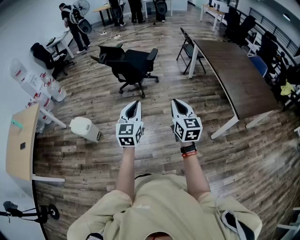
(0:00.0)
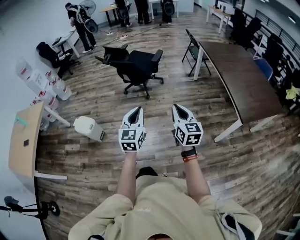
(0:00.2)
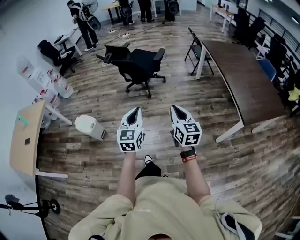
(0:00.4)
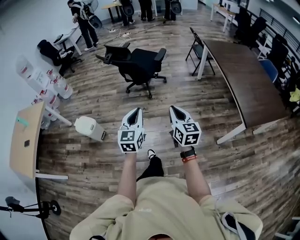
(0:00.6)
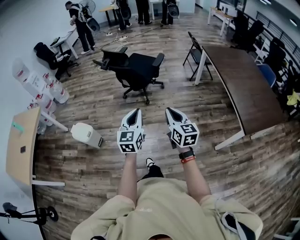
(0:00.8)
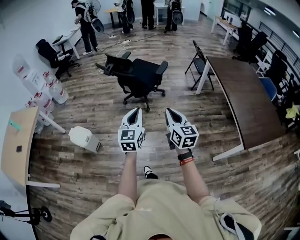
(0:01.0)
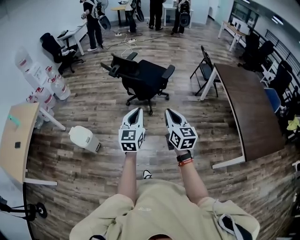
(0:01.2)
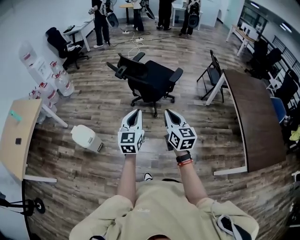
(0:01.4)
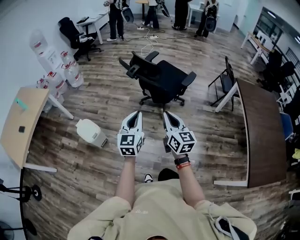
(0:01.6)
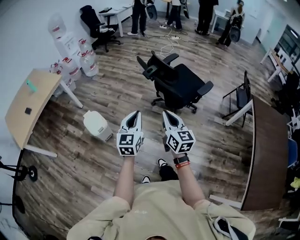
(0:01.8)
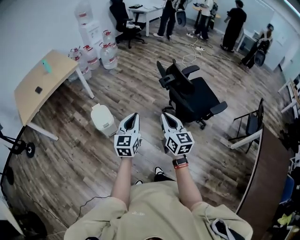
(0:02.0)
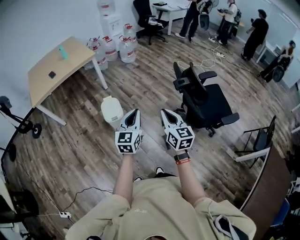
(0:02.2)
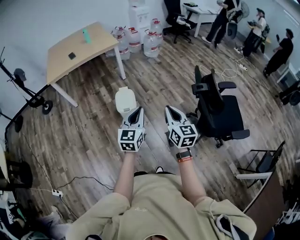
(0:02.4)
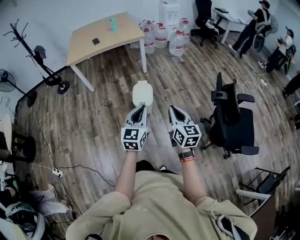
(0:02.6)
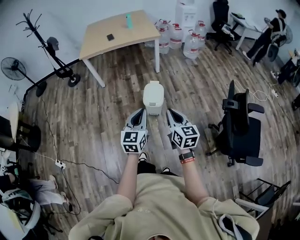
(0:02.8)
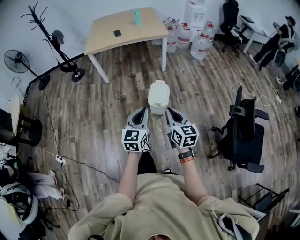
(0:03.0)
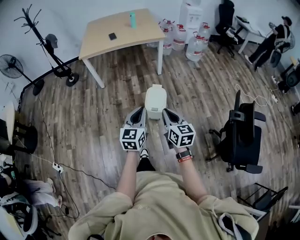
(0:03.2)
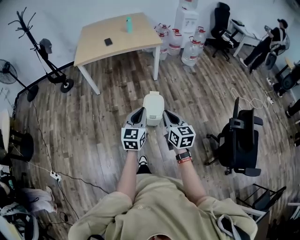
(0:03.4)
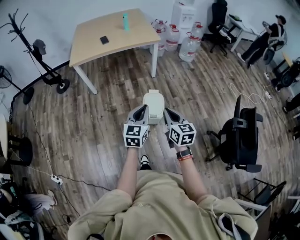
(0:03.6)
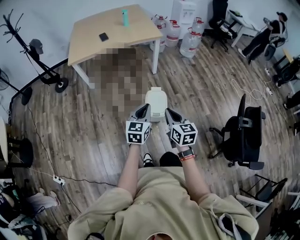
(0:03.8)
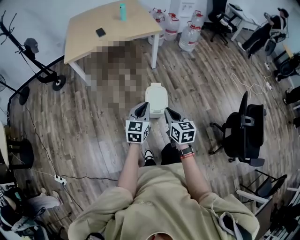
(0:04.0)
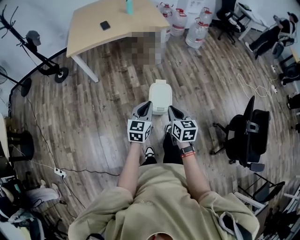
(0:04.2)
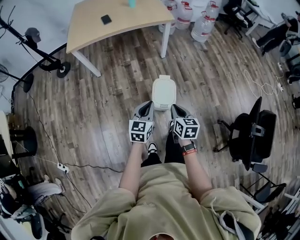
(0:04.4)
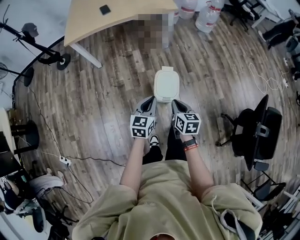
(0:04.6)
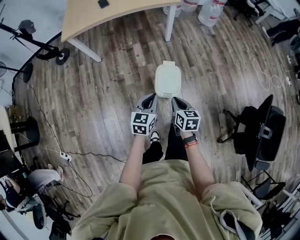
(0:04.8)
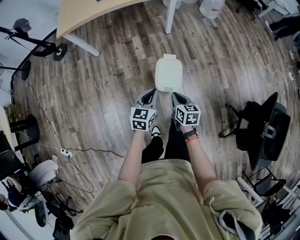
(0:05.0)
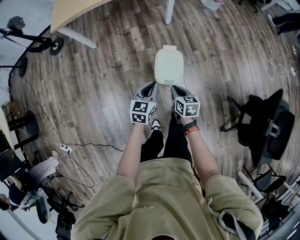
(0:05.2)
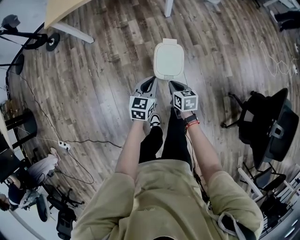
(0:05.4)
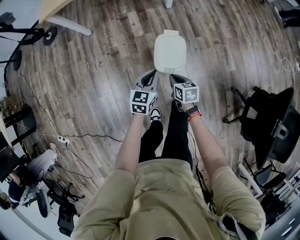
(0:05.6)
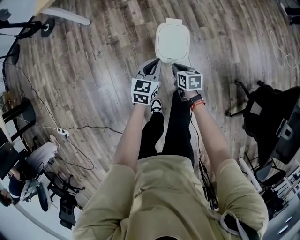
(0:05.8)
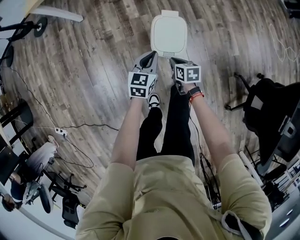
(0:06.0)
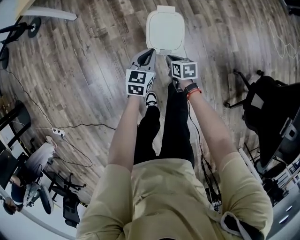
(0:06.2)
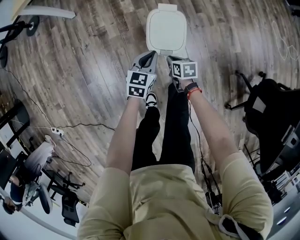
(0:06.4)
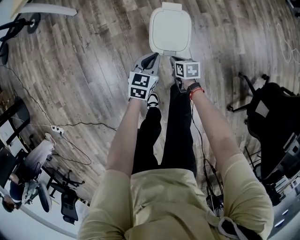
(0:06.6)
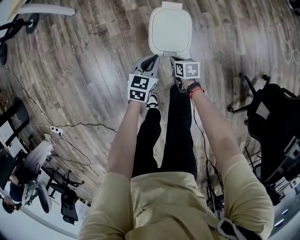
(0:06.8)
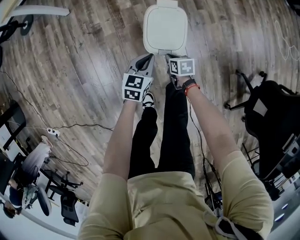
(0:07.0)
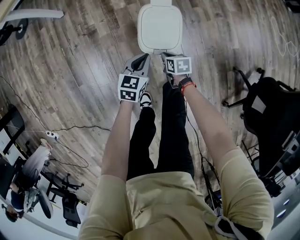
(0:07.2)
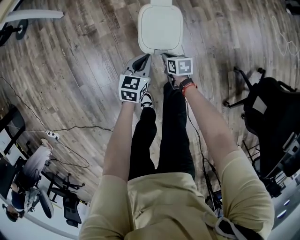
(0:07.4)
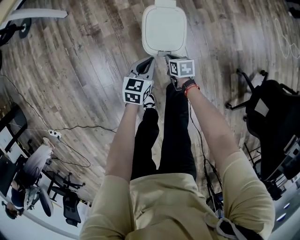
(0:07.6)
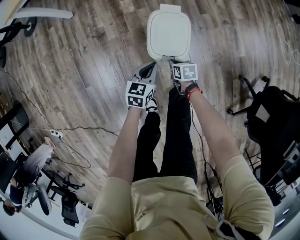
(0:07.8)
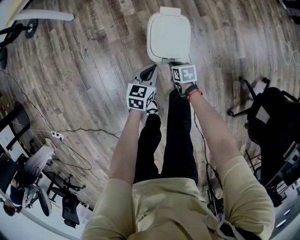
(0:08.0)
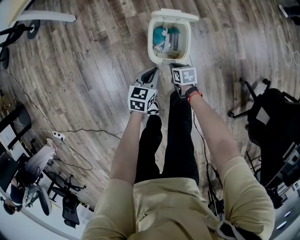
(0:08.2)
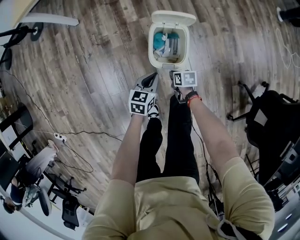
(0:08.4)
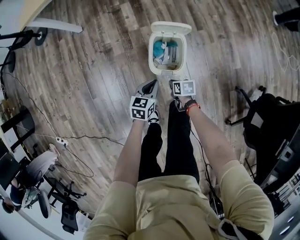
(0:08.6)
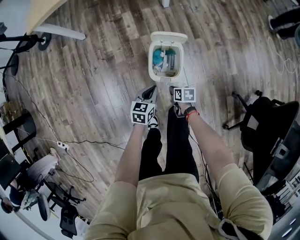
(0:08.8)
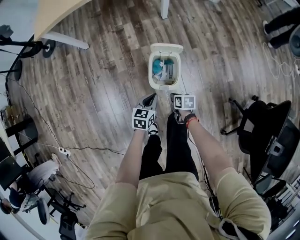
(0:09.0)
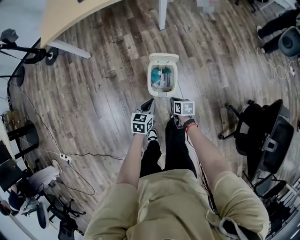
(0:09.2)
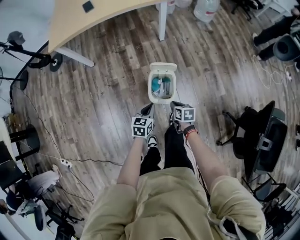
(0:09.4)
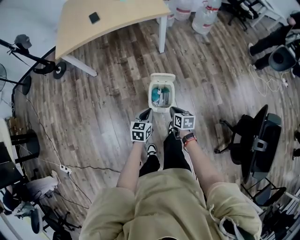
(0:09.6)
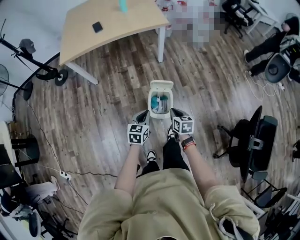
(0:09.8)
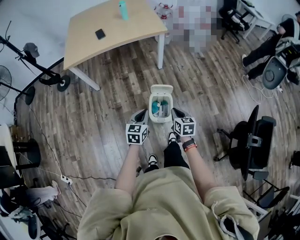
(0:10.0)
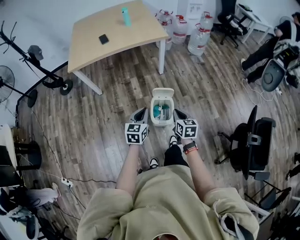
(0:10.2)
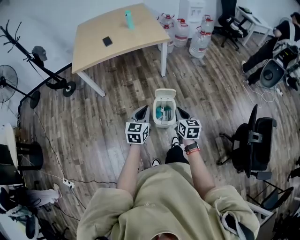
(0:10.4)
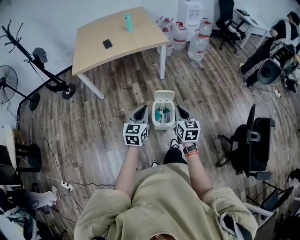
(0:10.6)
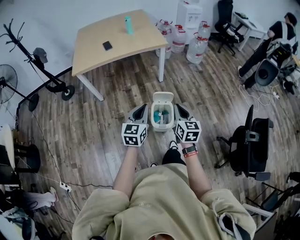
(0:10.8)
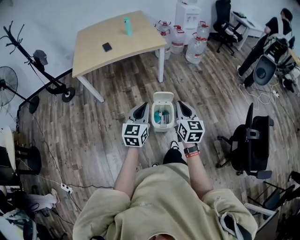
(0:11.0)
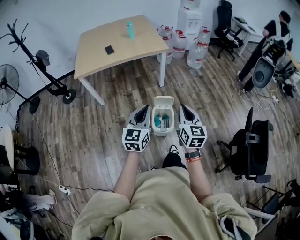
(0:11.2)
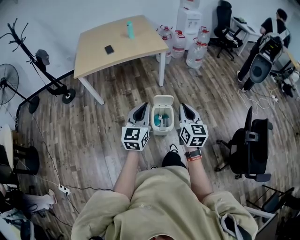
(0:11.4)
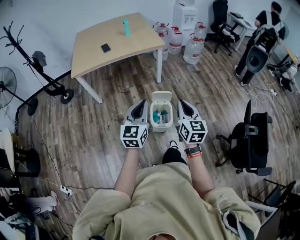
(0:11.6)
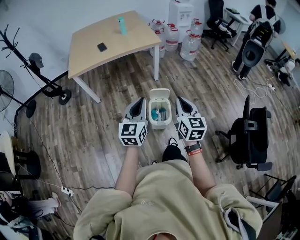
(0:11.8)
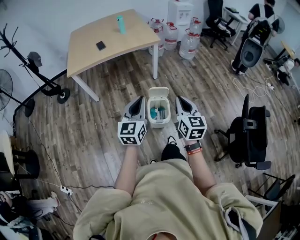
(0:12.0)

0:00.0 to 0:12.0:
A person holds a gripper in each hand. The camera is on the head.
0:00.0 to 0:01.6: Both grippers move forward and to the left, about 40 cm. The right gripper changes its angle by approximately 20 degrees.
0:01.6 to 0:03.0: The right gripper shifts by roughly 40 cm, and changes its angle by about 70 degrees, while the left gripper moves roughly 30 cm, and turns by approximately 60 degrees.
0:03.0 to 0:04.4: The grippers both shift forward and downward by roughly 35 cm. The right gripper changes its angle by some 20 degrees.
0:04.4 to 0:06.0: The grippers both shift downward by approximately 35 cm. The right gripper rotates about 30 degrees.
0:06.0 to 0:07.6: Both grippers travel together downward, approximately 15 cm.
0:07.6 to 0:09.0: Both grippers travel together upward, some 15 cm.
0:09.0 to 0:10.4: Both grippers move upward, some 40 cm. The left gripper changes its angle by about 20 degrees. The right gripper changes its angle by about 40 degrees.
0:10.4 to 0:12.0: The two grippers go some 15 cm upward and backward.

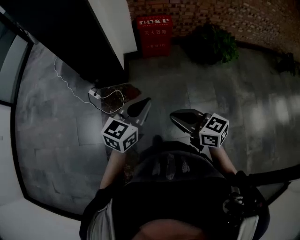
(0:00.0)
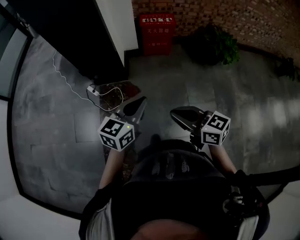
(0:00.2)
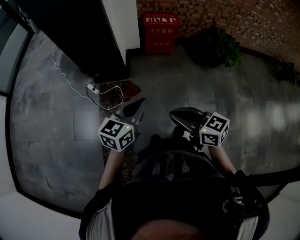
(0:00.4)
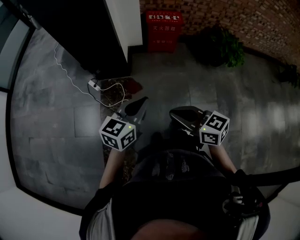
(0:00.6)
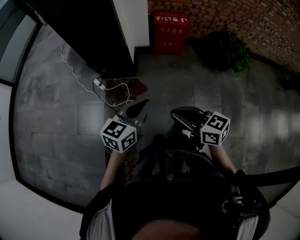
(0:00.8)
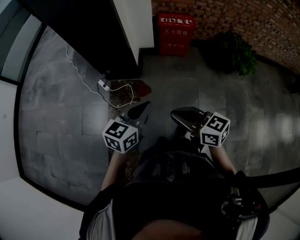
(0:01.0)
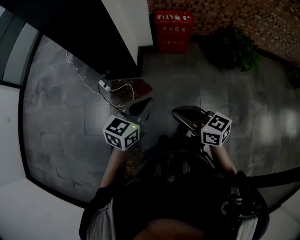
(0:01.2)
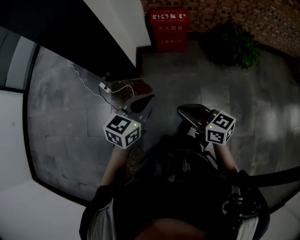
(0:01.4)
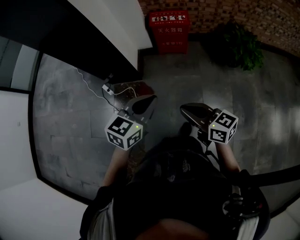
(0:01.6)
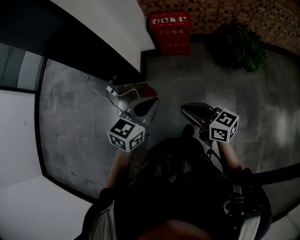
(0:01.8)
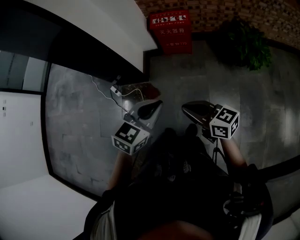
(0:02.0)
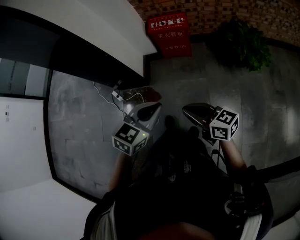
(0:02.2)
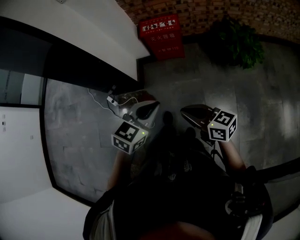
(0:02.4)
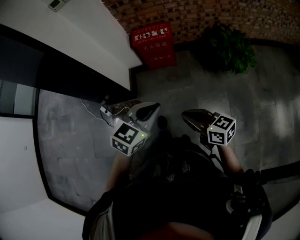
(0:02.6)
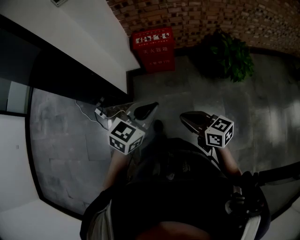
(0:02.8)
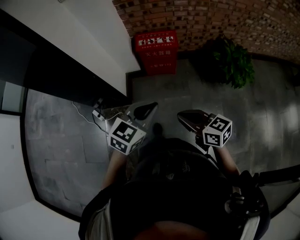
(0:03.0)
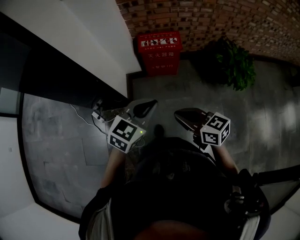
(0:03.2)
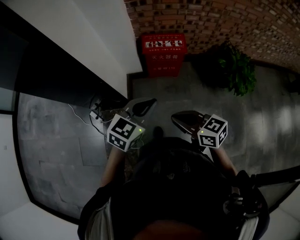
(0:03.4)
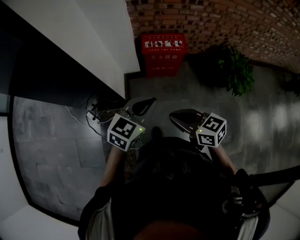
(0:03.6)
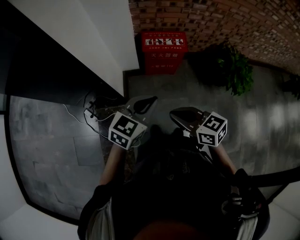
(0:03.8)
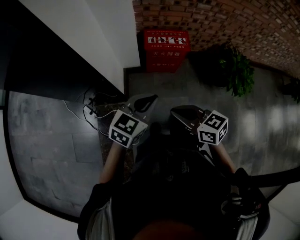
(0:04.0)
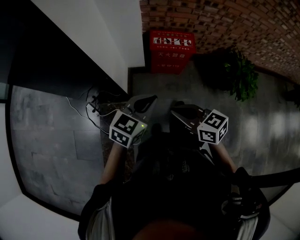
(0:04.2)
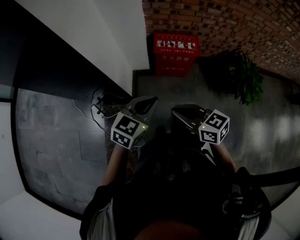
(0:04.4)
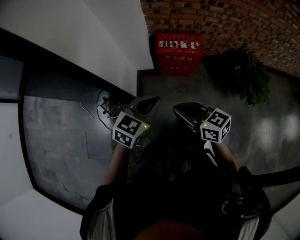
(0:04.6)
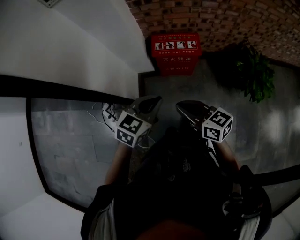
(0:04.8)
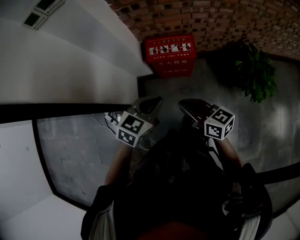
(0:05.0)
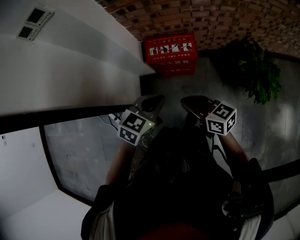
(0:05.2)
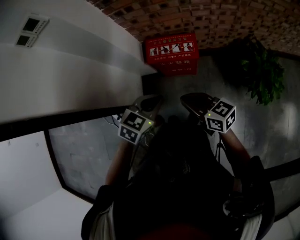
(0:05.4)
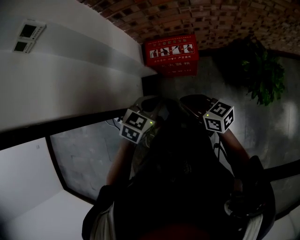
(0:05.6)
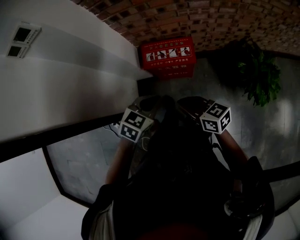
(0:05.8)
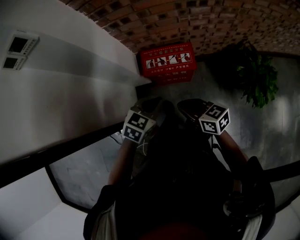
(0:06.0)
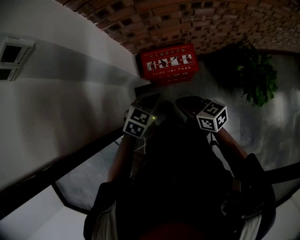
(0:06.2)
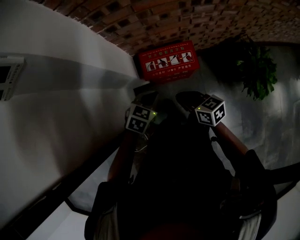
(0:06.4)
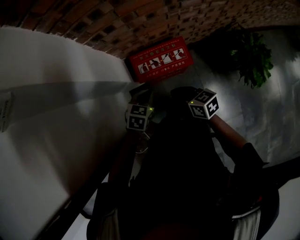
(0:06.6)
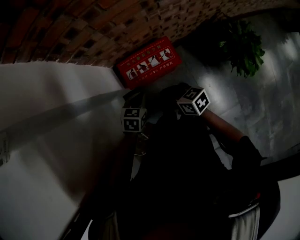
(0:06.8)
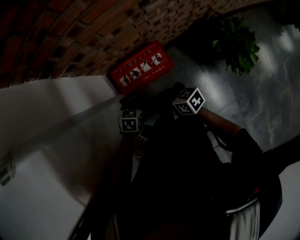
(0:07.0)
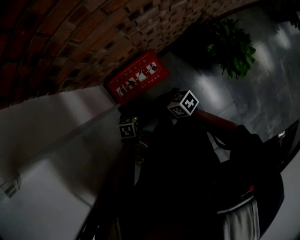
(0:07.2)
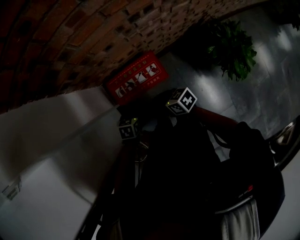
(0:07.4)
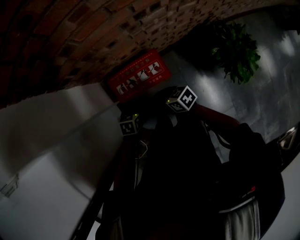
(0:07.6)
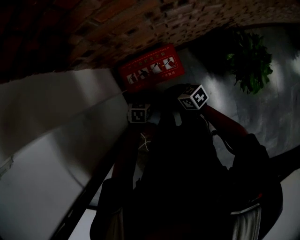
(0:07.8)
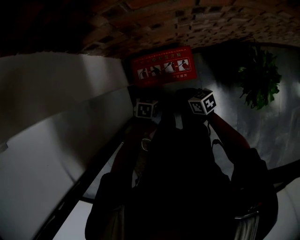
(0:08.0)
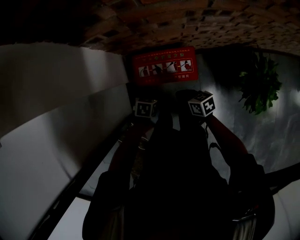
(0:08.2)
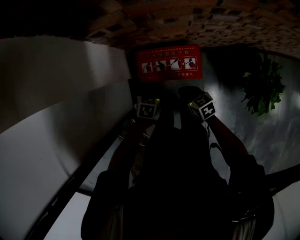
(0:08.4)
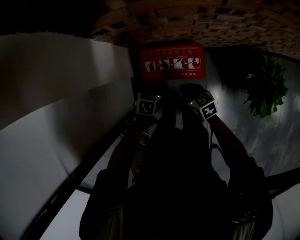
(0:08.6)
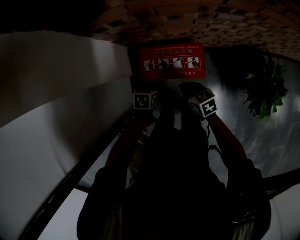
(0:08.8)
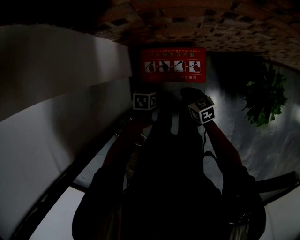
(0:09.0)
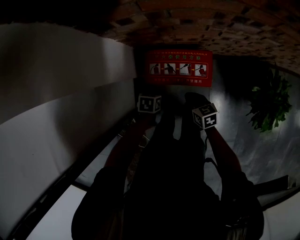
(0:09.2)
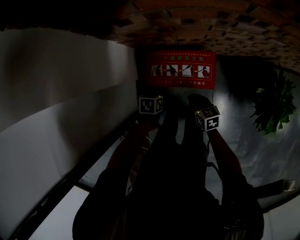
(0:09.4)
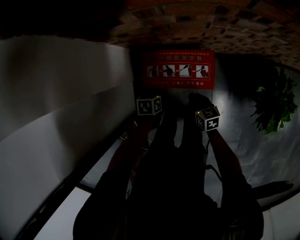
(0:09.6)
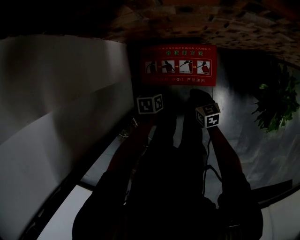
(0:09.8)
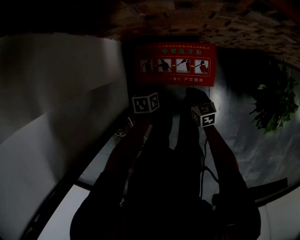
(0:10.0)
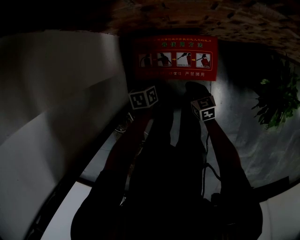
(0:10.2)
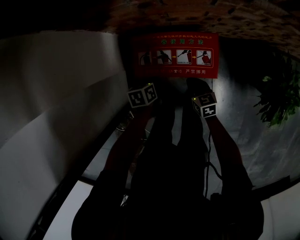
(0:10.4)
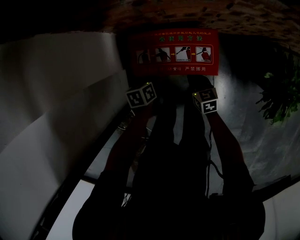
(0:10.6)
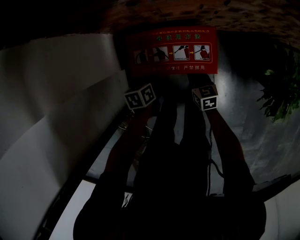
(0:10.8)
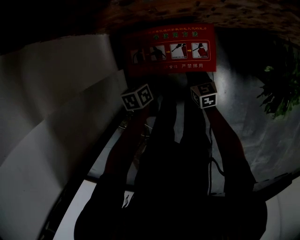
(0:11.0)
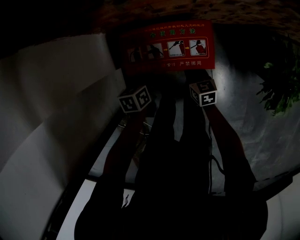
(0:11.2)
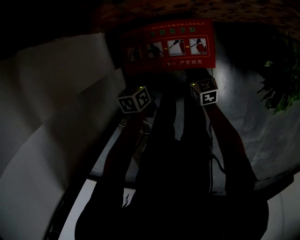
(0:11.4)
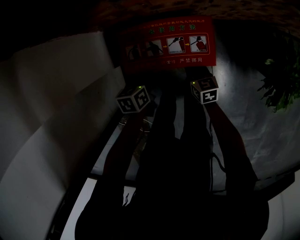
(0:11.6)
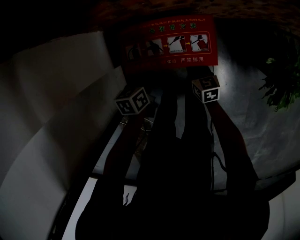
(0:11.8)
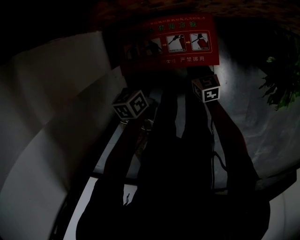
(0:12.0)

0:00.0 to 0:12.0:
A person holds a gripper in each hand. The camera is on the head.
0:00.0 to 0:01.6: Both grippers move forward and to the right, approximately 20 cm.
0:01.6 to 0:03.0: The grippers both shift forward by some 15 cm.
0:03.0 to 0:04.4: Both grippers move forward and to the left, roughly 20 cm.
0:04.4 to 0:06.0: The grippers both shift forward and to the right by approximately 30 cm.
0:06.0 to 0:07.6: The left gripper moves downward and forward, about 25 cm, and swivels about 30 degrees, while the right gripper moves forward and downward, about 20 cm.
0:07.6 to 0:09.0: The grippers both shift downward by roughly 10 cm. The left gripper turns by some 20 degrees.
0:09.0 to 0:10.4: The left gripper shifts some 10 cm downward, and swivels about 20 degrees. The right gripper travels downward by about 15 cm.
0:10.4 to 0:12.0: The left gripper heads upward, covering about 5 cm.
